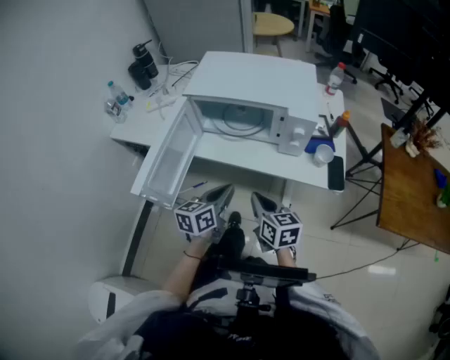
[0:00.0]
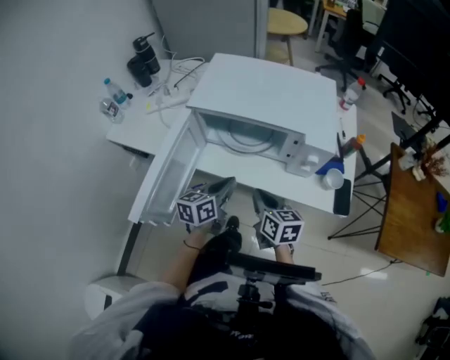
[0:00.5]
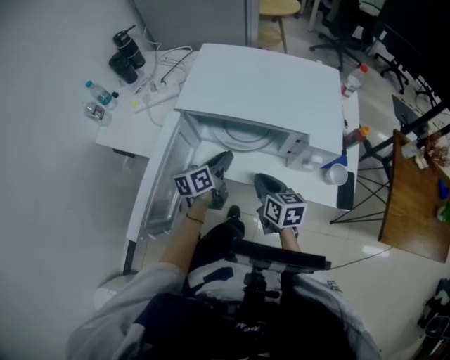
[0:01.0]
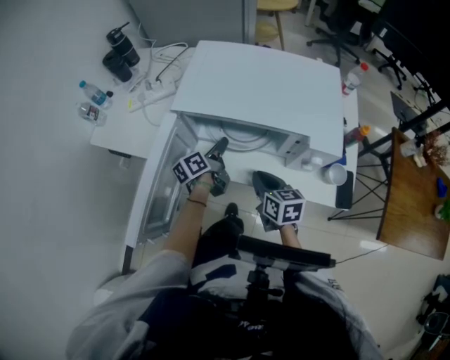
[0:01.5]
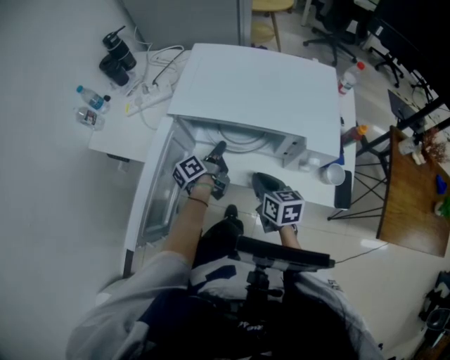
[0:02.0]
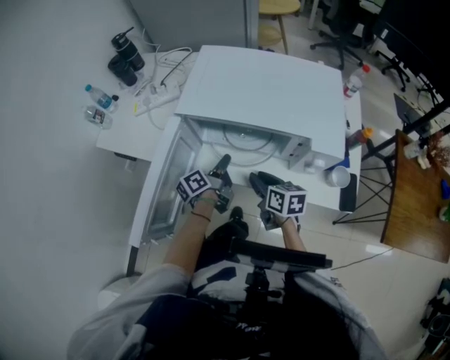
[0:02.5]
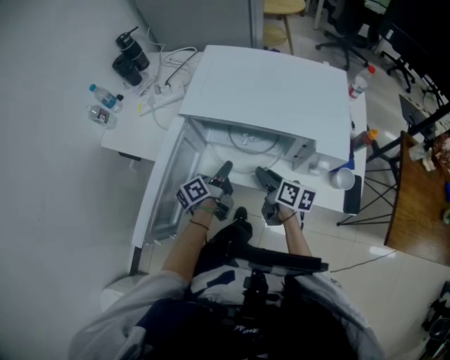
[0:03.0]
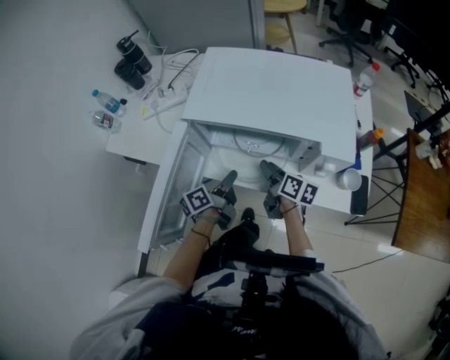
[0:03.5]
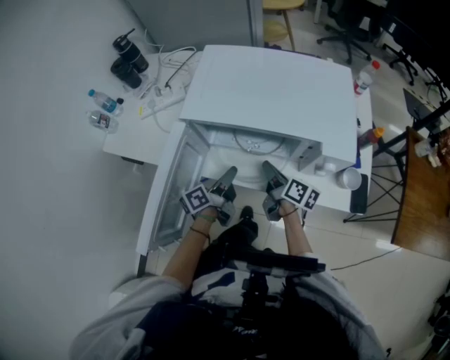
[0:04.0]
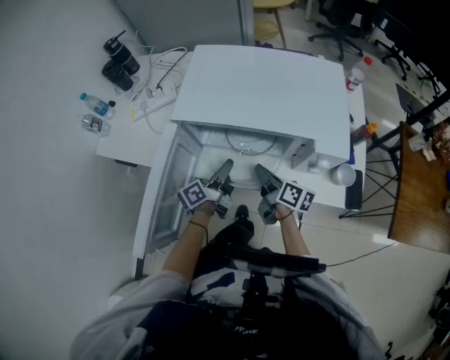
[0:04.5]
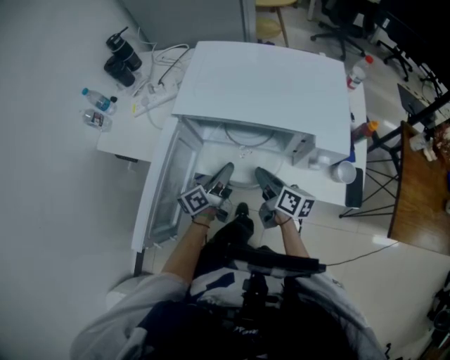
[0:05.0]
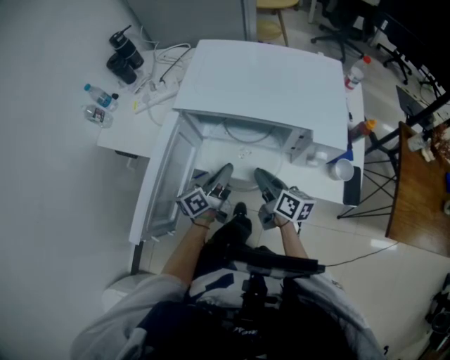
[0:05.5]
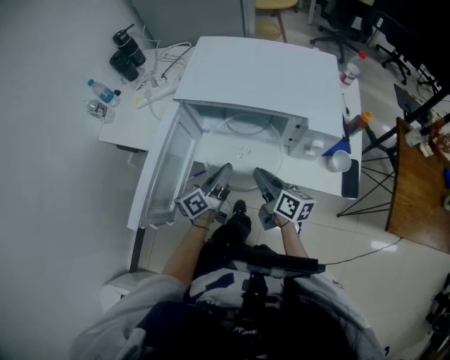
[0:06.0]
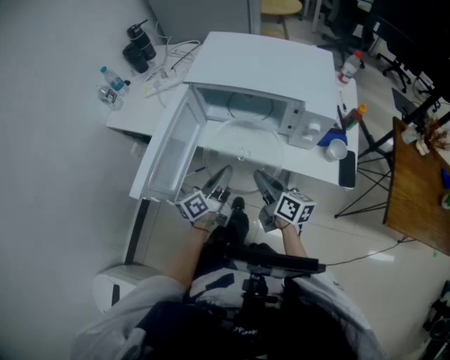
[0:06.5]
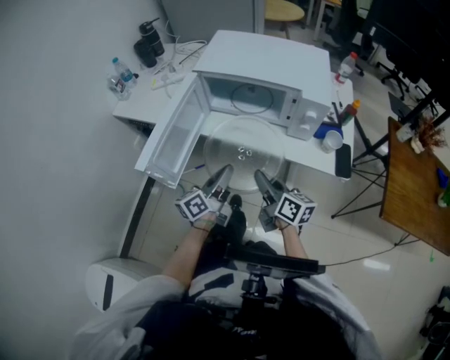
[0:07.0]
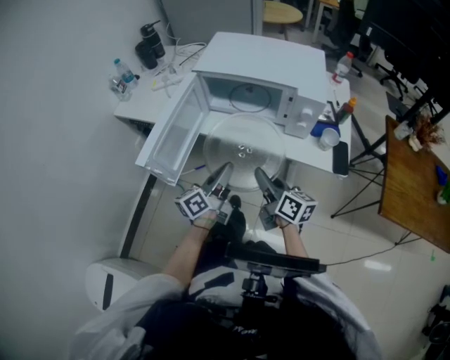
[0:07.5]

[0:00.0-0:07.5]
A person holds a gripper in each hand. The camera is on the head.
0:00.0 to 0:02.0: Both grippers move forward, some 25 cm. The left gripper rolls counterclockwise, seen from behind, by some 40 degrees.
0:02.0 to 0:04.0: The left gripper is displaced backward by roughly 5 cm, while the right gripper is displaced forward by roughly 5 cm, rotates about 40 degrees, and opens, then closes again.
0:04.0 to 0:05.5: The right gripper shifts about 5 cm backward.
0:05.5 to 0:07.5: The grippers both shift backward by approximately 20 cm.

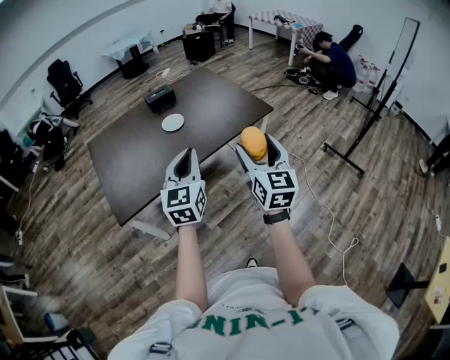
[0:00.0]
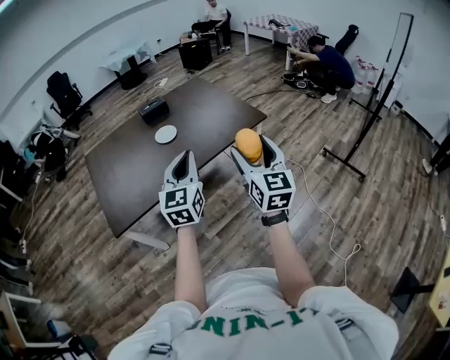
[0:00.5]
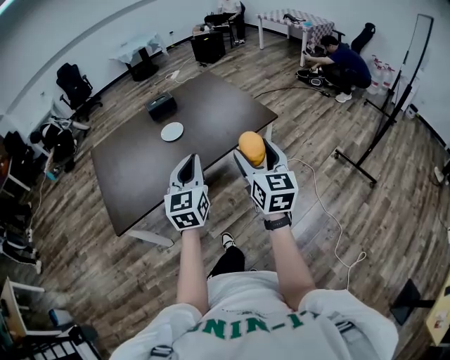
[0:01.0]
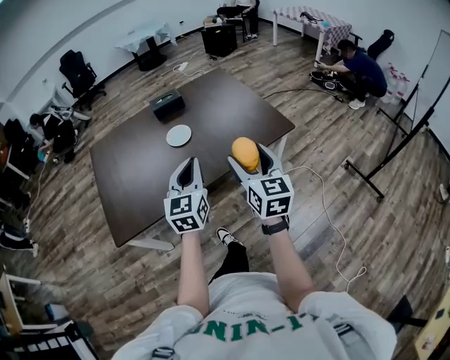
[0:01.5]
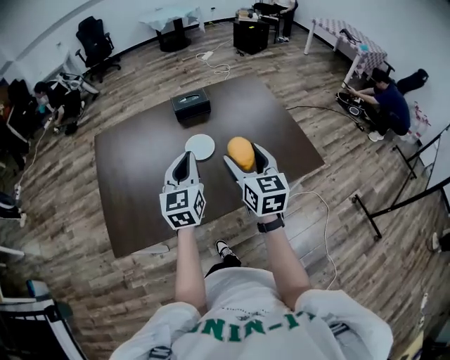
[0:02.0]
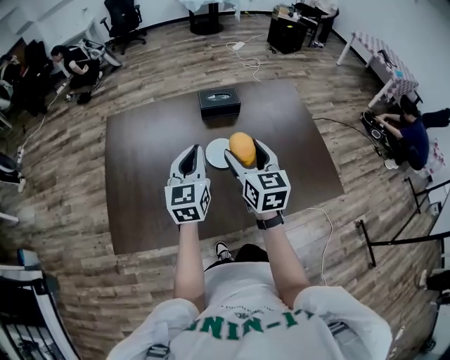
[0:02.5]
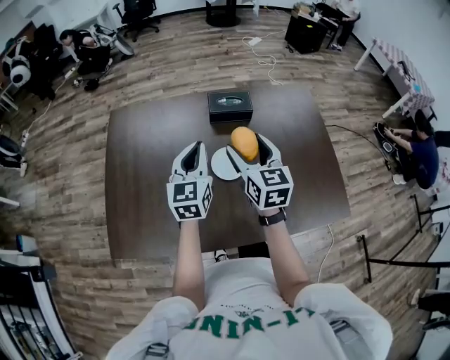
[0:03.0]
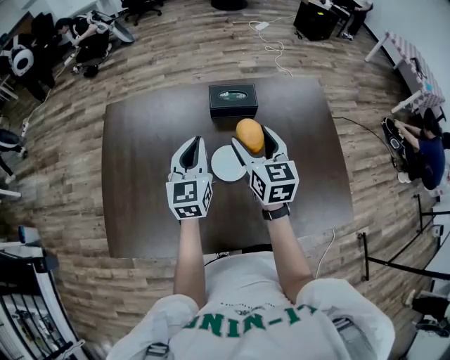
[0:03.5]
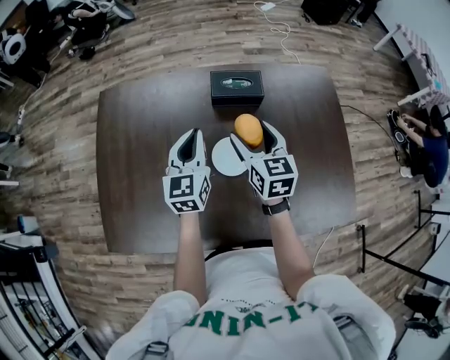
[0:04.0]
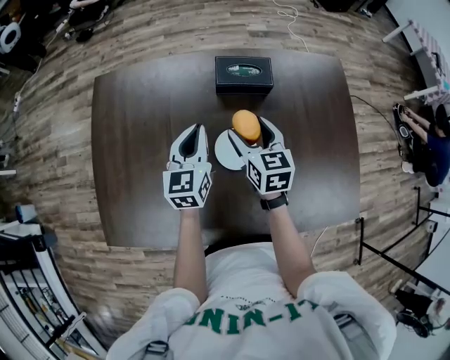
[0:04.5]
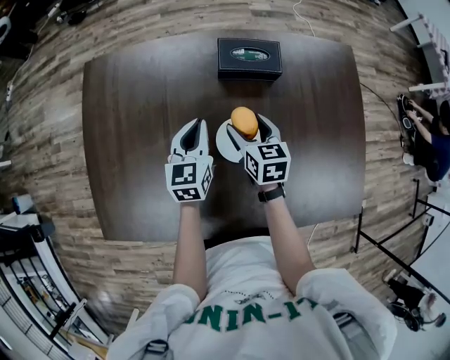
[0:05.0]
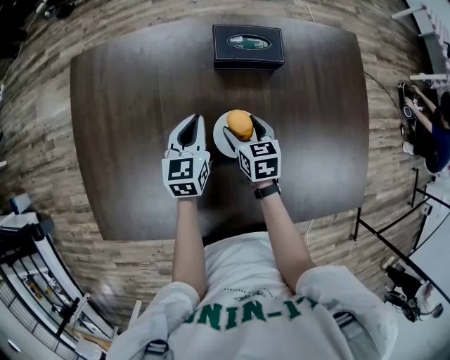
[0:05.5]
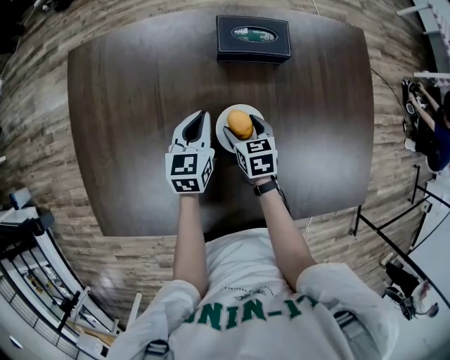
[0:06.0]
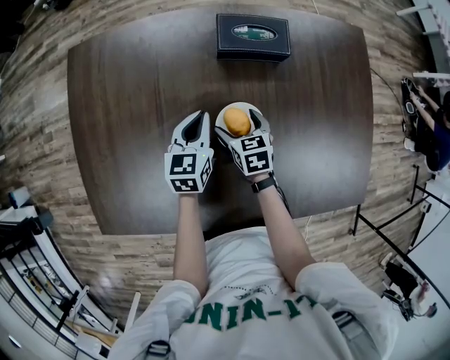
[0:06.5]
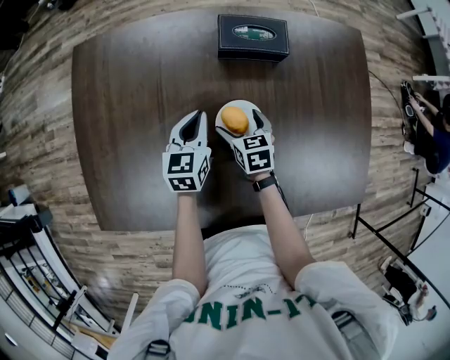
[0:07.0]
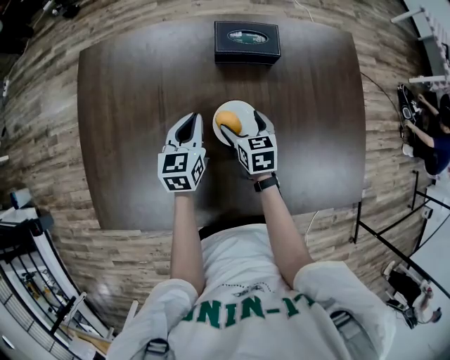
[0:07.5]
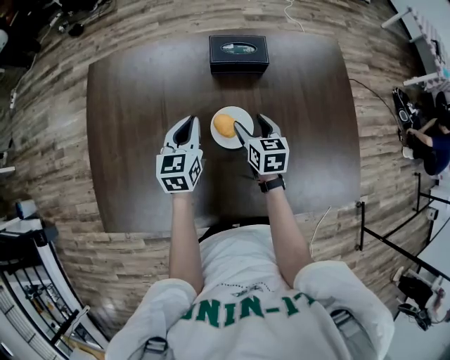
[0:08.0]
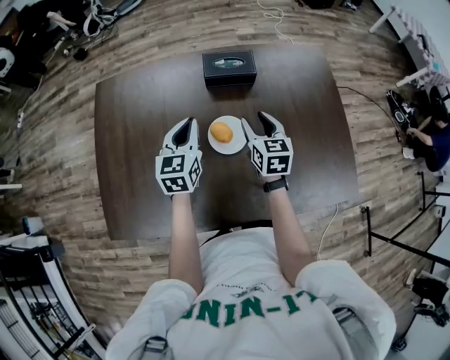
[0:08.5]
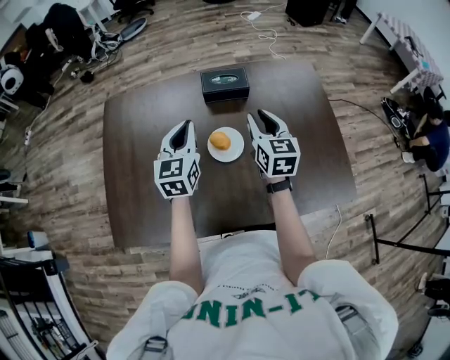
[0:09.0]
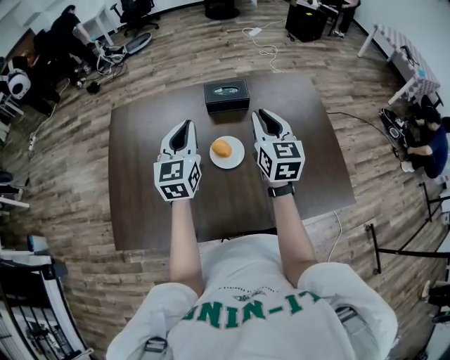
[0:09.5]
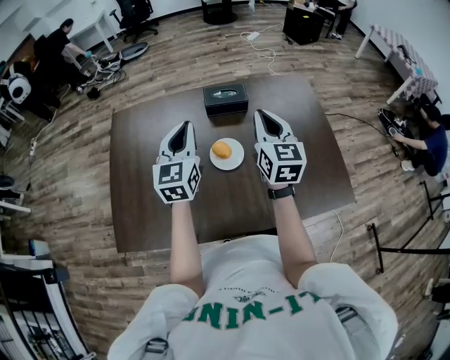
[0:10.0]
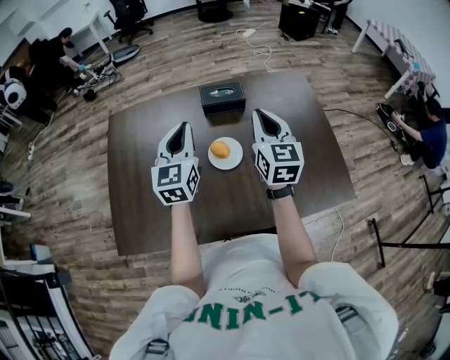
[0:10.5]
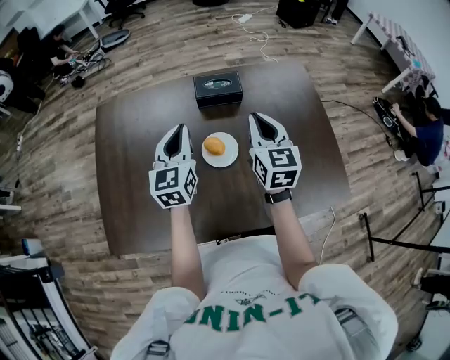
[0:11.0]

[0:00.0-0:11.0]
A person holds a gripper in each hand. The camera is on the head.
0:00.0 to 0:02.0: Both grippers move forward, about 40 cm. The right gripper rotates some 30 degrees.
0:02.0 to 0:03.5: The two grippers go about 30 cm forward.
0:03.5 to 0:05.5: The grippers both shift downward by approximately 25 cm. The right gripper swivels roughly 30 degrees. The left gripper turns by approximately 20 degrees.
0:05.5 to 0:07.5: The grippers make only small movements.
0:07.5 to 0:09.0: Both grippers travel together upward, roughly 20 cm. The right gripper changes its angle by about 30 degrees, and closes.
0:09.0 to 0:11.0: The right gripper heads upward, covering some 5 cm.

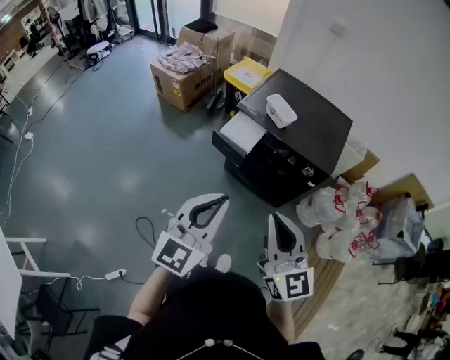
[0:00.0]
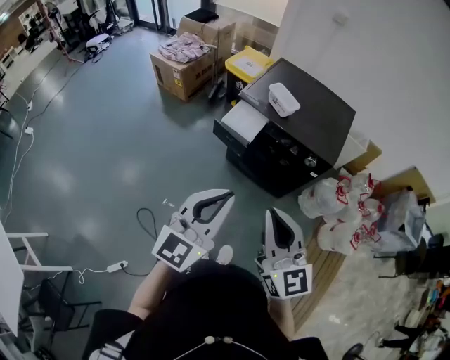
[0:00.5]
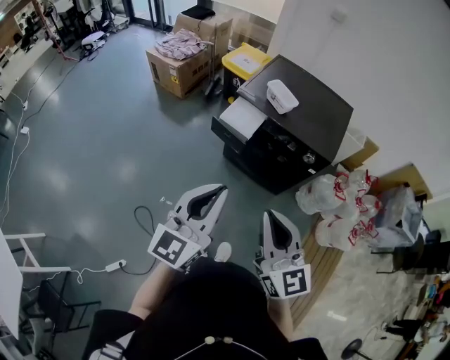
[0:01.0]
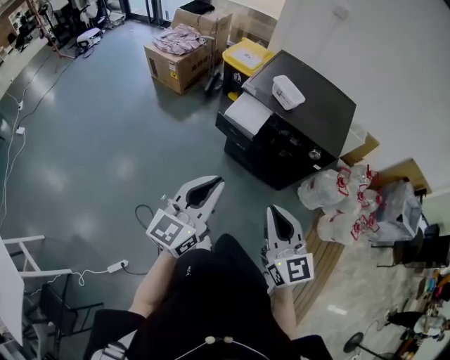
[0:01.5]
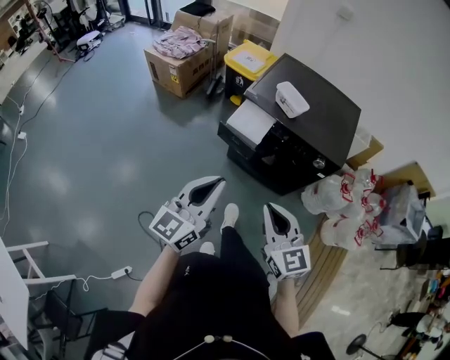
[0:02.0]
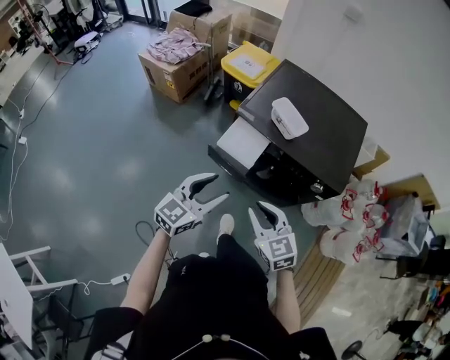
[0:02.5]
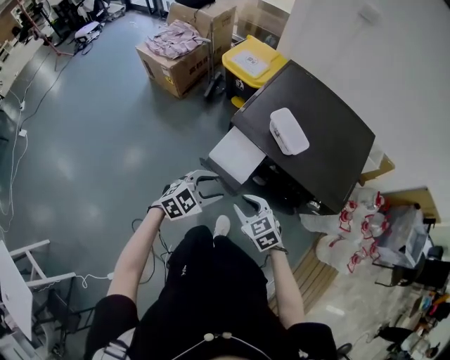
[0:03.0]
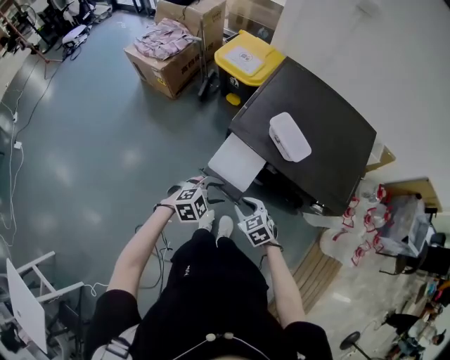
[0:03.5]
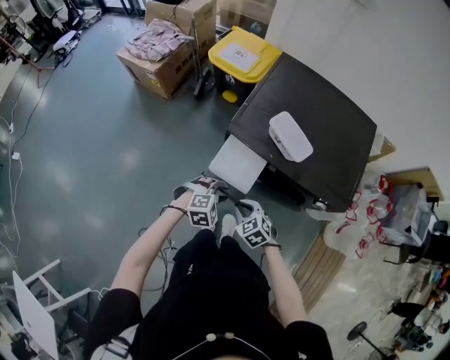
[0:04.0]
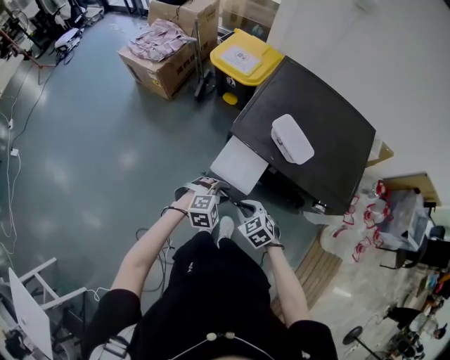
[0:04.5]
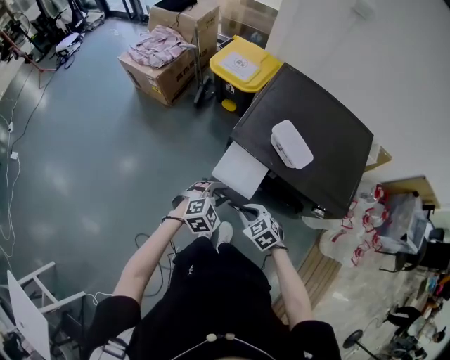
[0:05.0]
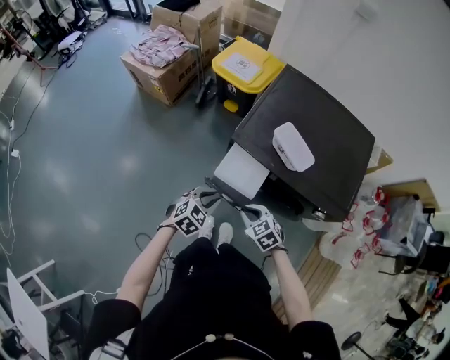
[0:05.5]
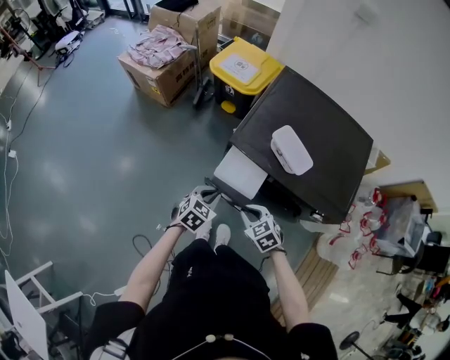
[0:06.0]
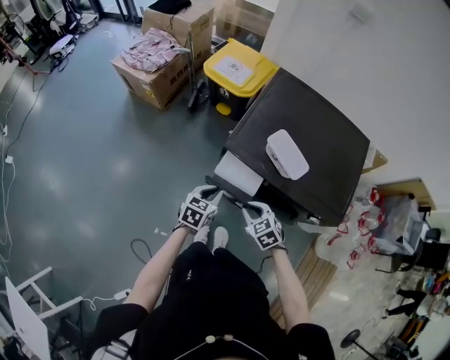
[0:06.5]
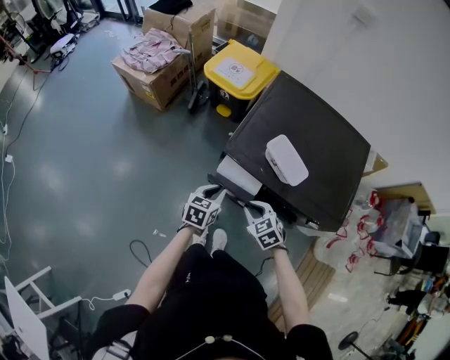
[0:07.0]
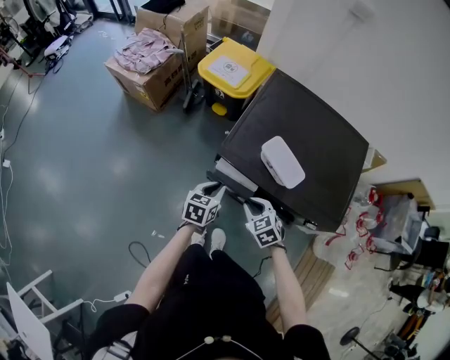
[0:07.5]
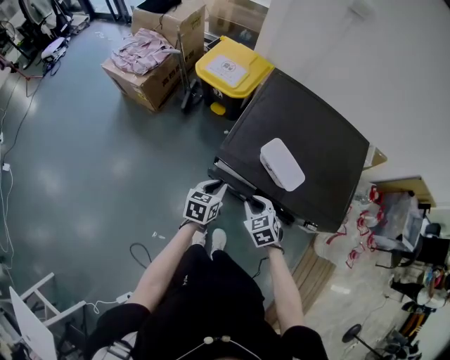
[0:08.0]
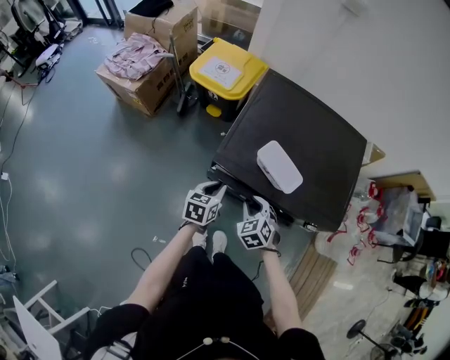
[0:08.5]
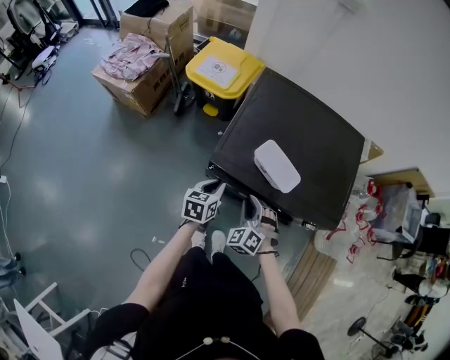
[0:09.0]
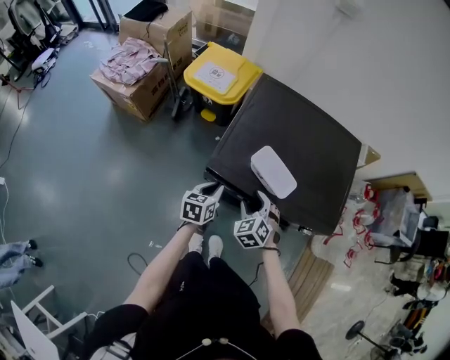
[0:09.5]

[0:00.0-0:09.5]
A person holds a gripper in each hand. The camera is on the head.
0:00.0 to 0:02.0: The right gripper is displaced downward and forward by approximately 15 cm, while the left gripper travels forward, downward and to the left by some 10 cm.
0:02.0 to 0:04.0: Both grippers travel together downward and forward, about 40 cm. The right gripper tips its fingers downward by about 40 degrees, while the left gripper tips its fingers downward by approximately 70 degrees, and opens its fingers.
0:04.0 to 0:05.5: The left gripper moves some 5 cm, and turns by roughly 30 degrees.
0:05.5 to 0:07.5: The grippers both shift forward by some 10 cm. The left gripper changes its angle by roughly 40 degrees.
0:07.5 to 0:09.5: Both grippers travel together forward, roughly 5 cm. The right gripper swivels approximately 20 degrees, and opens up.
